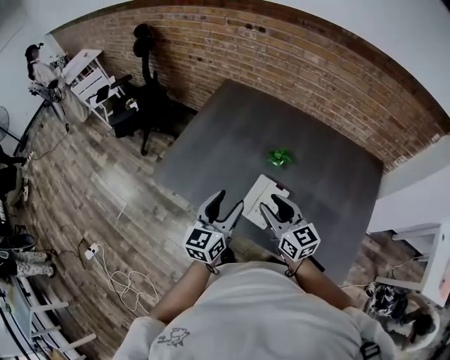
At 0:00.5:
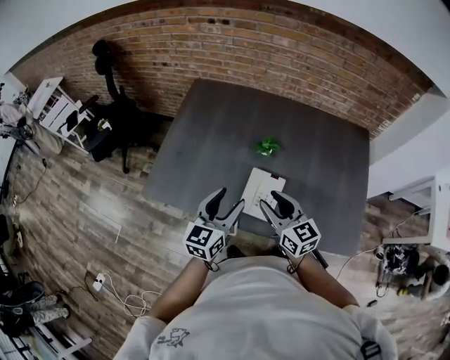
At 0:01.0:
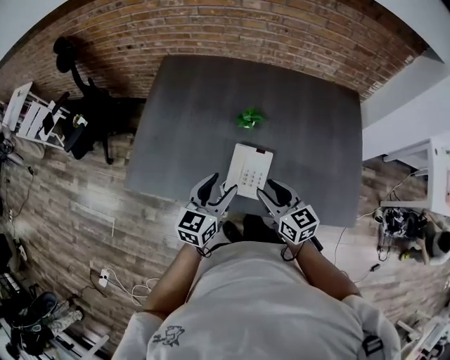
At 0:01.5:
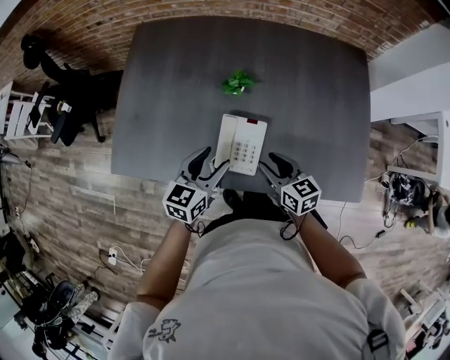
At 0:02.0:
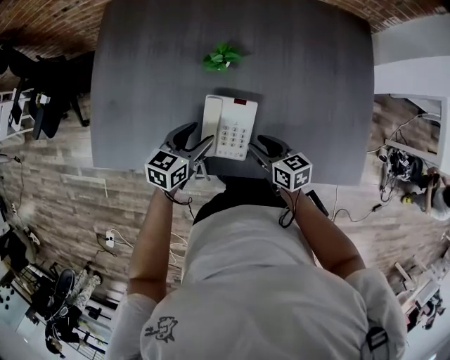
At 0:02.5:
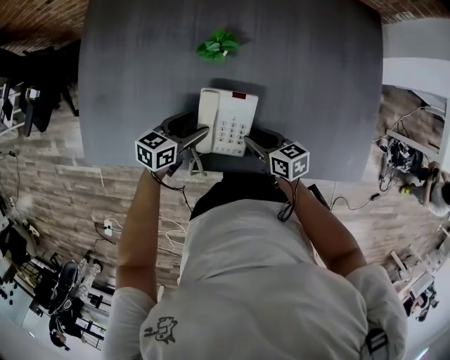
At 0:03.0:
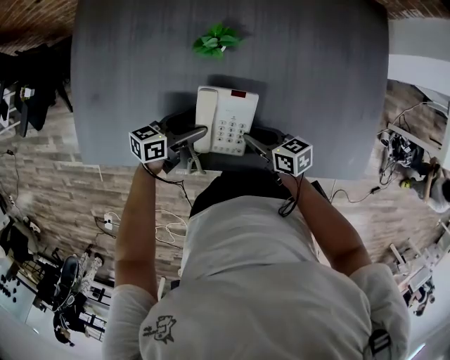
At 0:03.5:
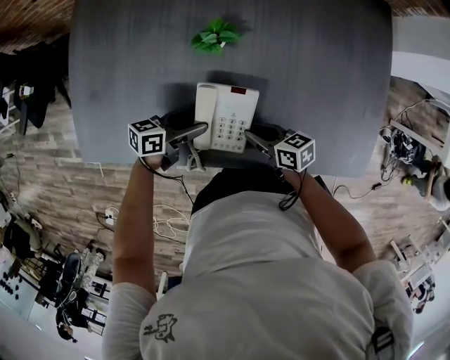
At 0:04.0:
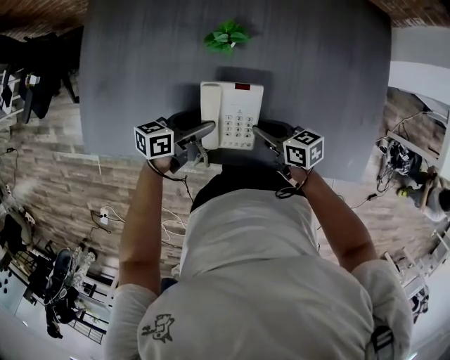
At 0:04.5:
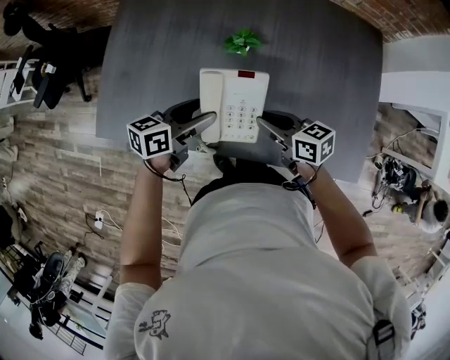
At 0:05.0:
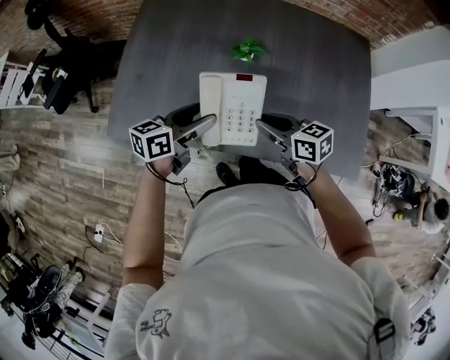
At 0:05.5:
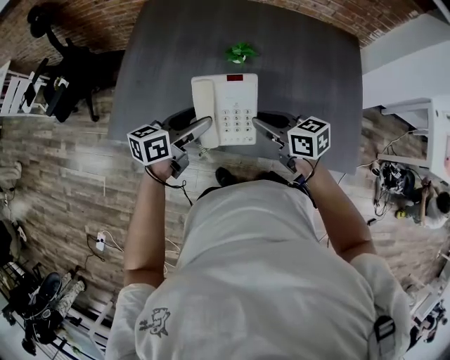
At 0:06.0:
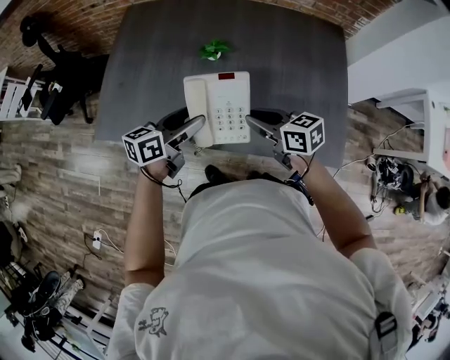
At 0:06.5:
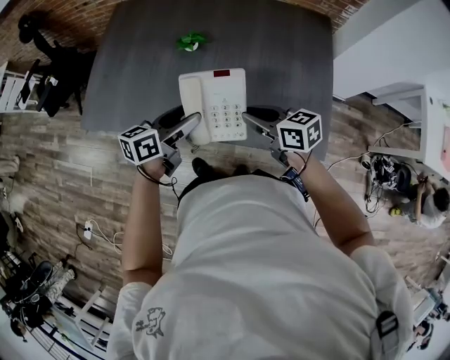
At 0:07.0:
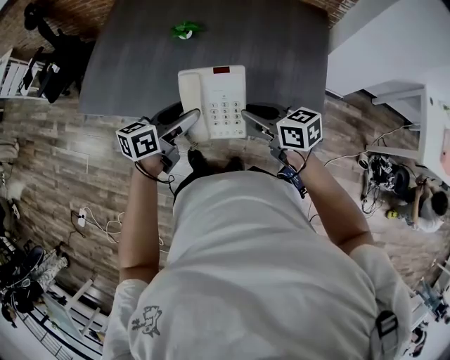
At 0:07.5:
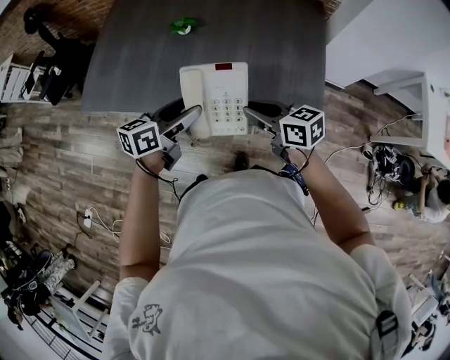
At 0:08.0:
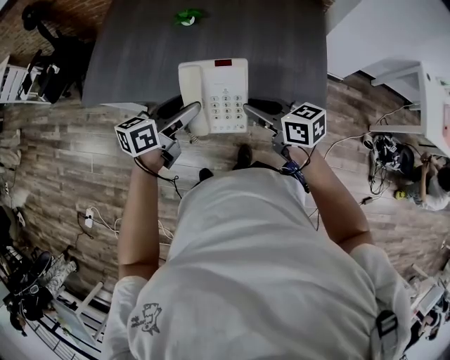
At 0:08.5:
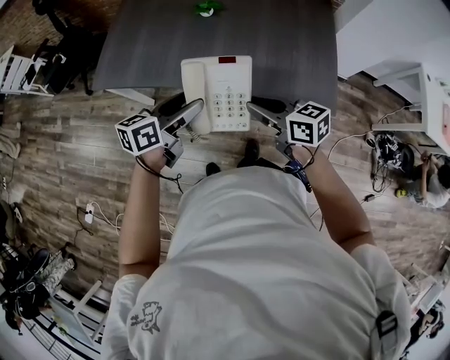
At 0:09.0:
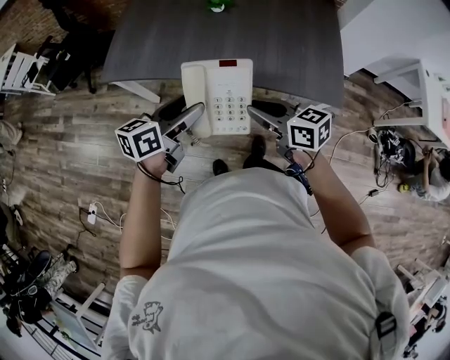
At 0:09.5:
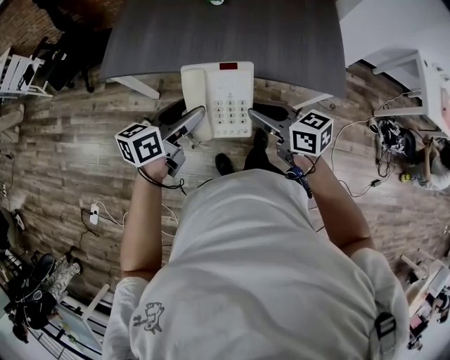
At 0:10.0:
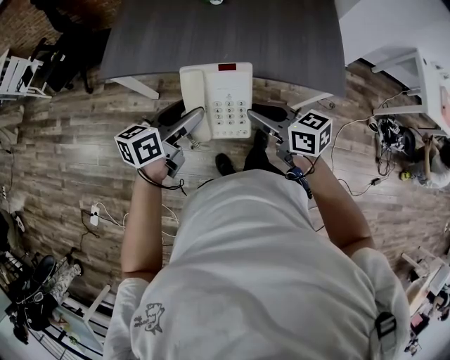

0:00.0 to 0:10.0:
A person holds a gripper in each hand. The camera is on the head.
0:00.0 to 0:02.0: The grippers both shift downward by approximately 25 cm. The left gripper rotates roughly 50 degrees. The right gripper turns by about 40 degrees.
0:02.0 to 0:04.0: The left gripper rotates about 30 degrees. The right gripper closes its fingers.
0:04.0 to 0:06.0: The two grippers go roughly 20 cm upward. The left gripper turns by roughly 20 degrees.
0:06.0 to 0:08.0: The two grippers go some 20 cm backward and to the right.
0:08.0 to 0:10.0: The two grippers go approximately 20 cm to the left and backward.

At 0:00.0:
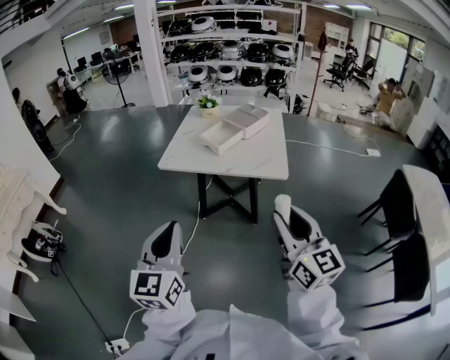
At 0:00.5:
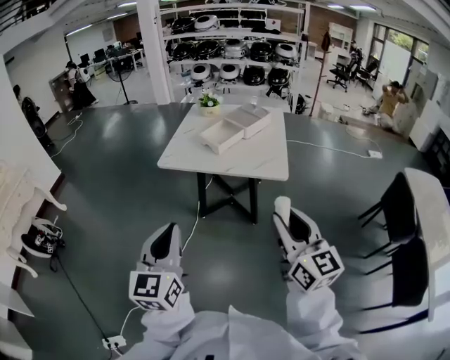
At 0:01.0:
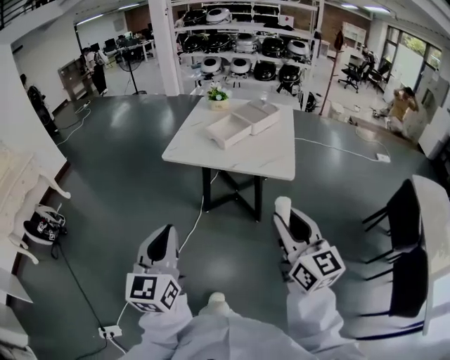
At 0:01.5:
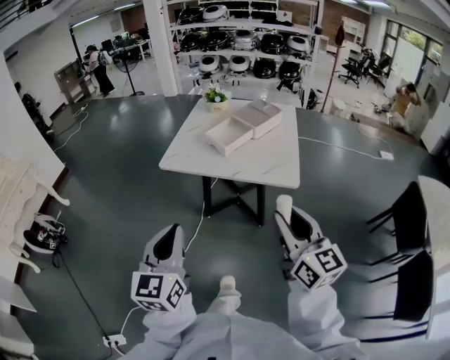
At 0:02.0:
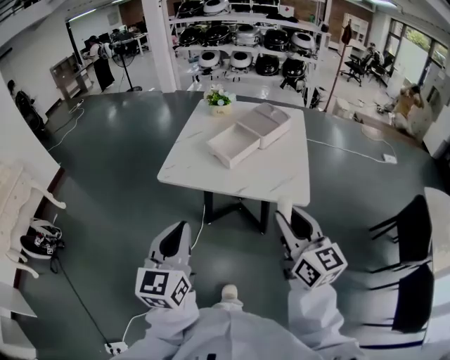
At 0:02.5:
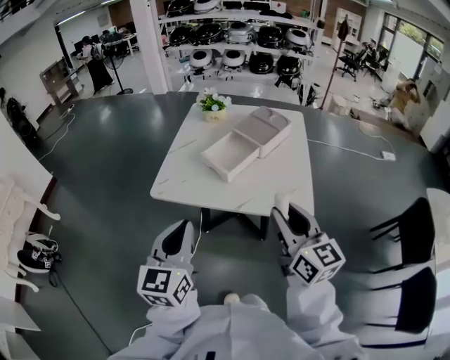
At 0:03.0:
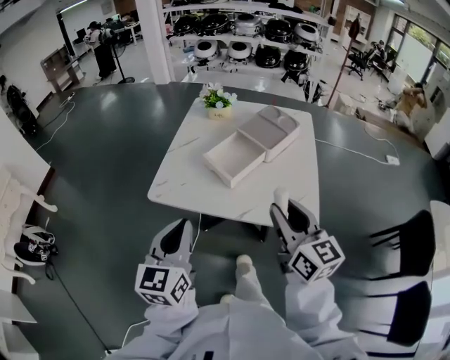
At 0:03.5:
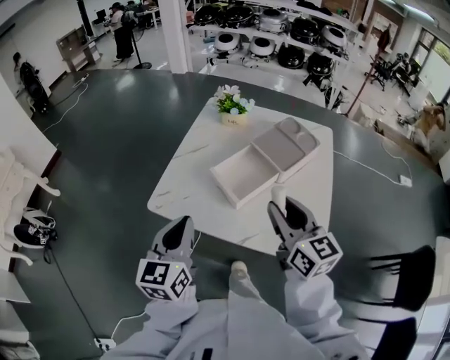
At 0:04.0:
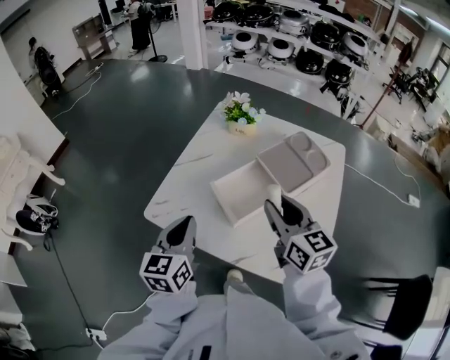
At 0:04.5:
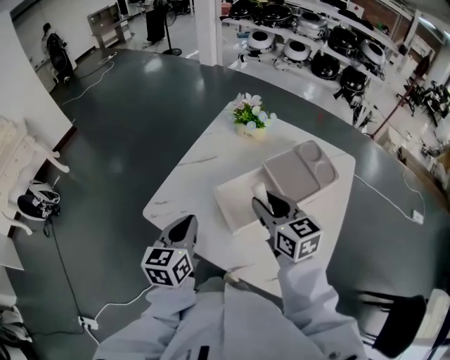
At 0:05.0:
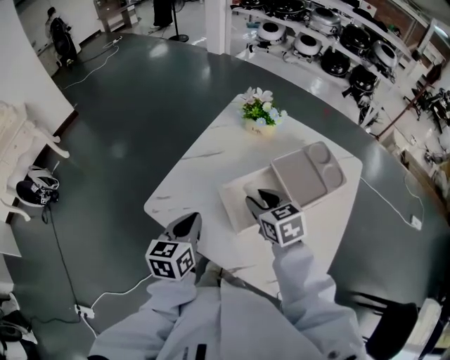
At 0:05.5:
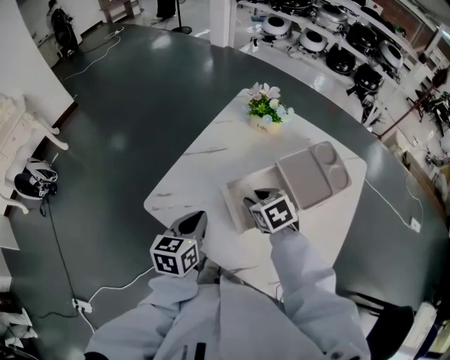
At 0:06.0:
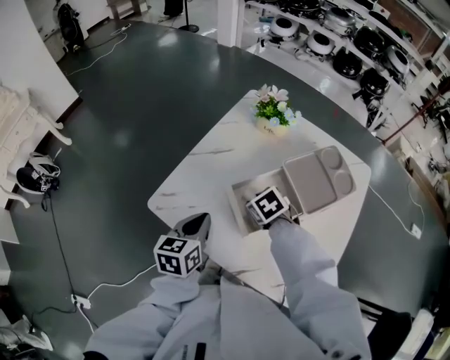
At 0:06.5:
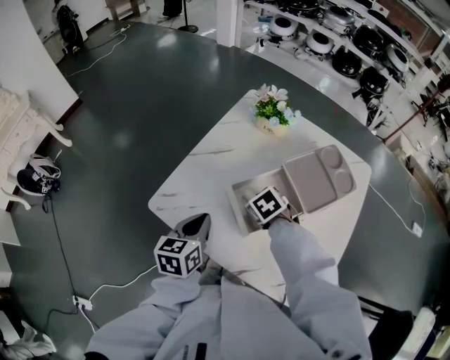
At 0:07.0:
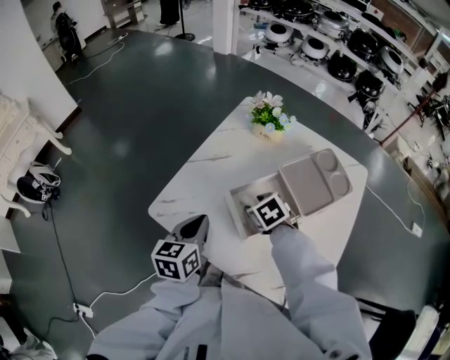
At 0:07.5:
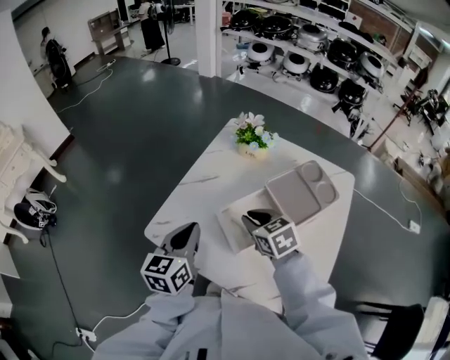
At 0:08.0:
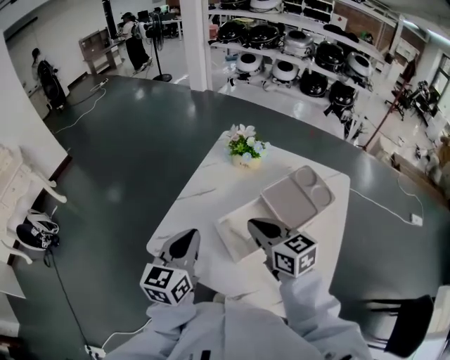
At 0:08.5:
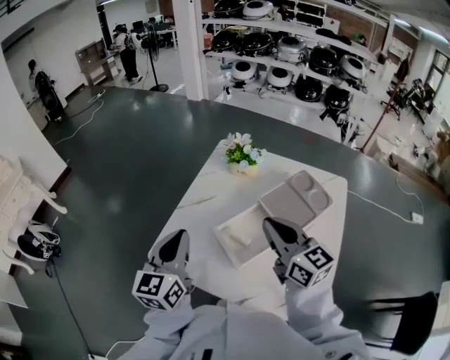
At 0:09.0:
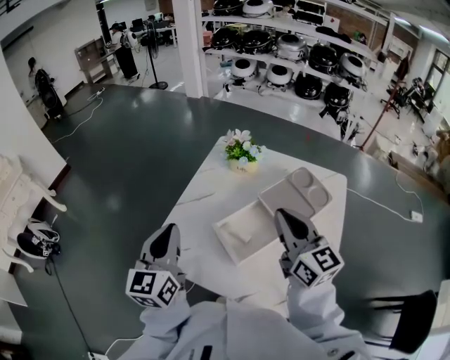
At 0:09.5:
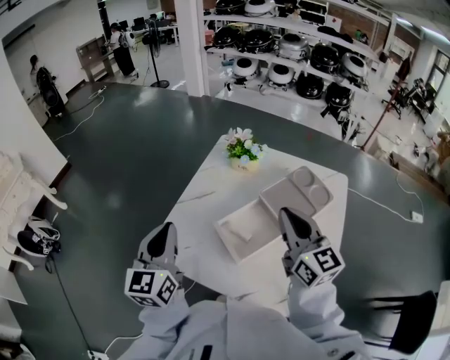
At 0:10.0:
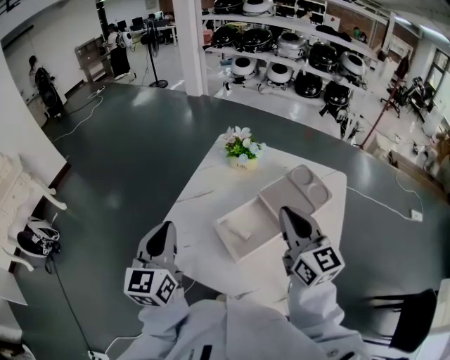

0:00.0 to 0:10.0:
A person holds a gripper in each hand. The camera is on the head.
0:00.0 to 0:02.0: The grippers both shift forward by approximately 20 cm.
0:02.0 to 0:04.0: The grippers both shift forward by some 40 cm.
0:04.0 to 0:06.0: The right gripper travels downward and forward by approximately 25 cm, and angles its fingers downward, by approximately 60 degrees. The left gripper travels downward and forward by approximately 15 cm.
0:06.0 to 0:08.0: The two grippers go approximately 15 cm upward. The left gripper rotates approximately 20 degrees, while the right gripper angles its fingers upward, by approximately 50 degrees, and closes.
0:08.0 to 0:10.0: The right gripper shifts some 10 cm upward and to the right, and swivels about 30 degrees, while the left gripper travels upward and to the left by about 10 cm.

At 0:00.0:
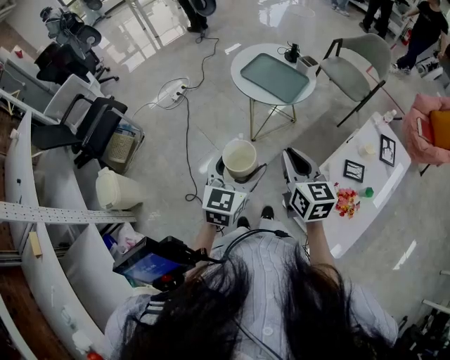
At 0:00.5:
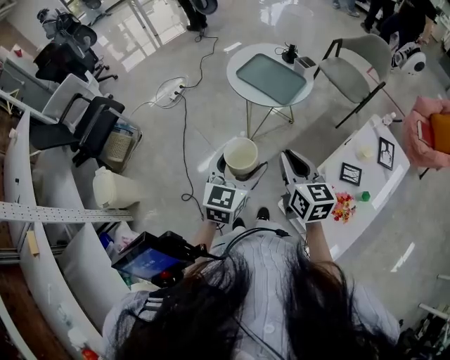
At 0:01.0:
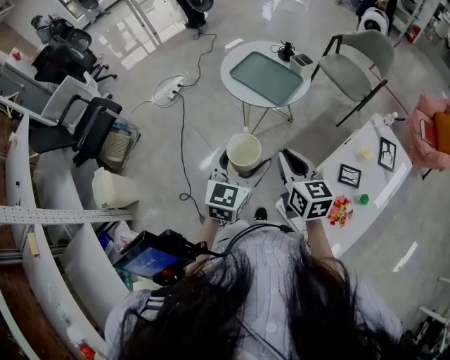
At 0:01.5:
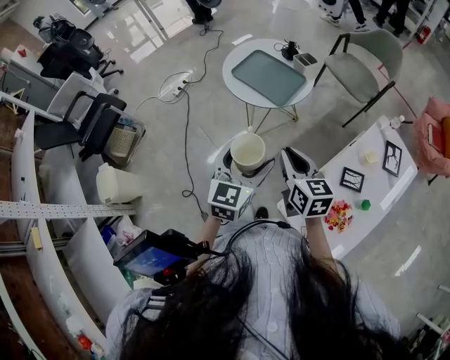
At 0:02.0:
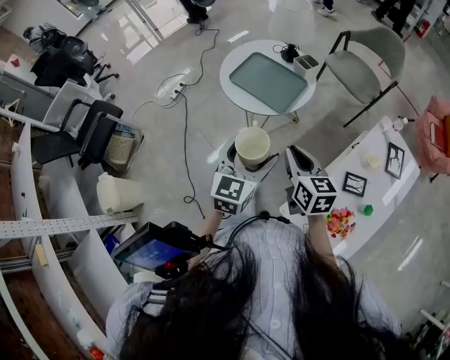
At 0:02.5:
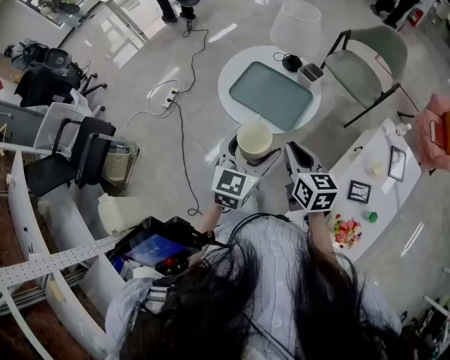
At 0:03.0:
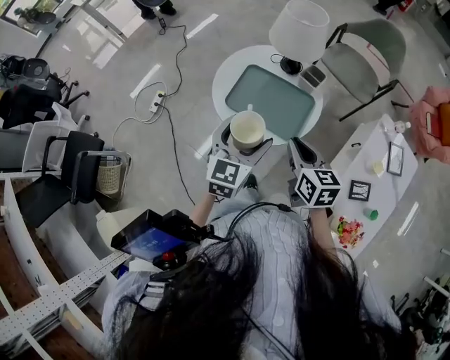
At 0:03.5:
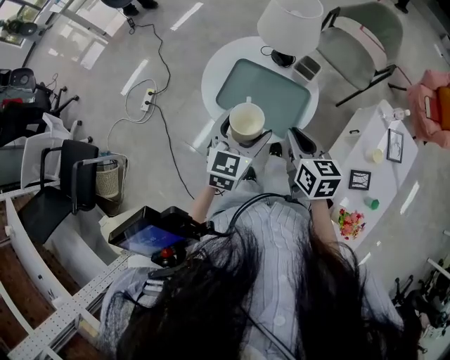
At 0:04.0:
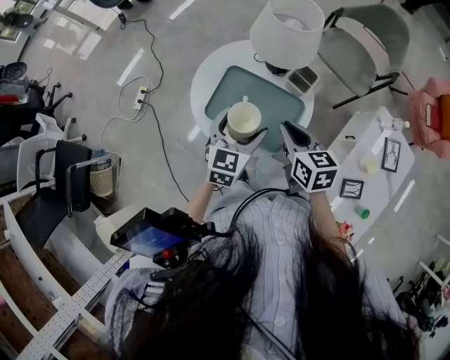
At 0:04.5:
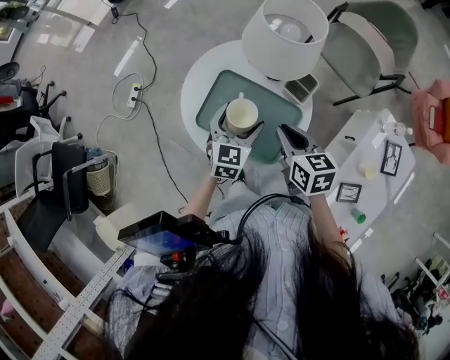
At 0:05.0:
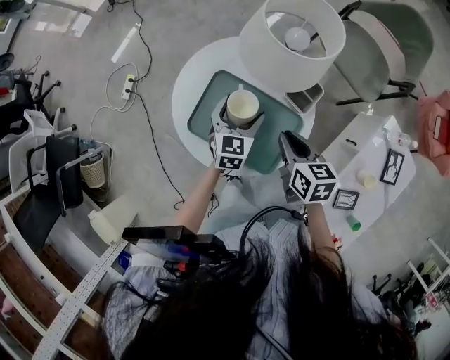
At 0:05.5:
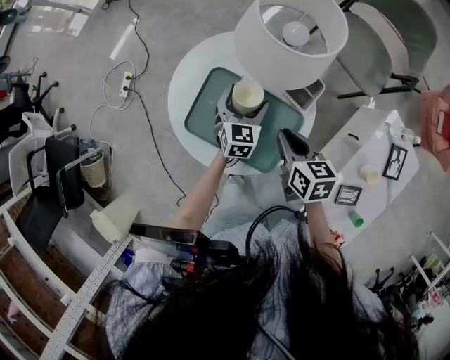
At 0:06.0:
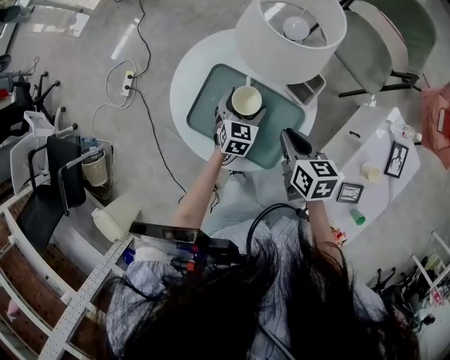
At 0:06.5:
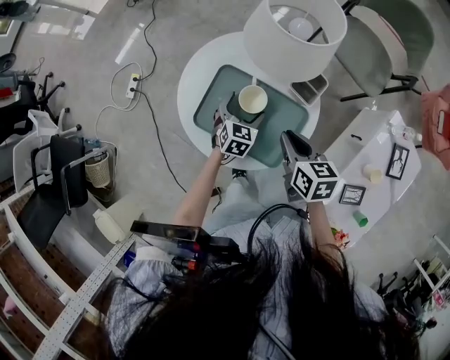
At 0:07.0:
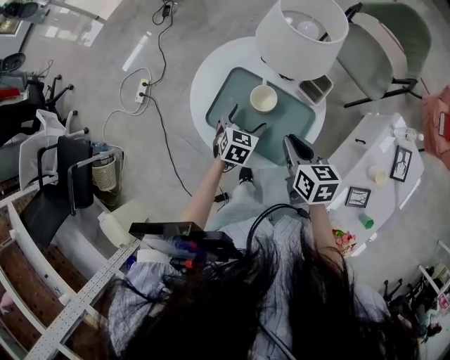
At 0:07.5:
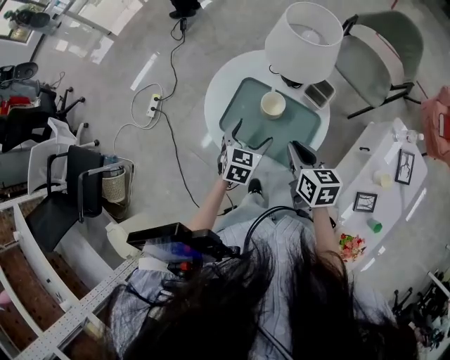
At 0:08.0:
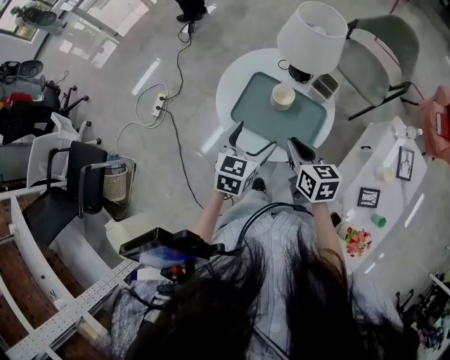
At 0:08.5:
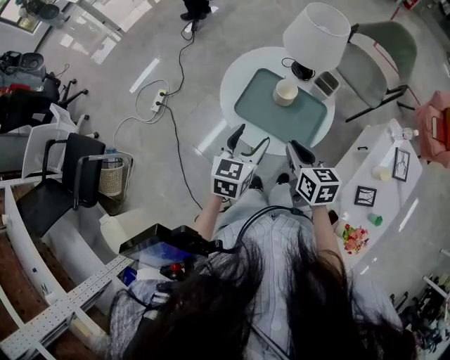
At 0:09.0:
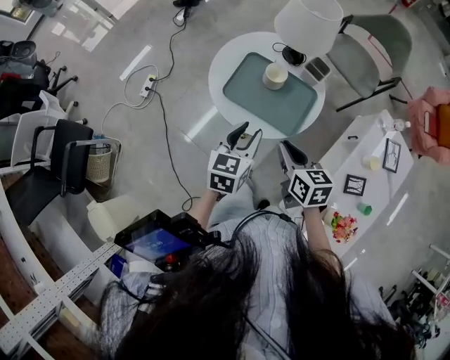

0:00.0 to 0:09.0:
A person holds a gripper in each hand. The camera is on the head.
0:00.0 to 0:02.0: The left gripper shifts about 20 cm forward and to the right. The right gripper heads forward, to the right and downward, covering some 15 cm.
0:02.0 to 0:04.5: The right gripper travels forward by roughly 35 cm, while the left gripper moves forward and downward, roughly 40 cm.
0:04.5 to 0:07.0: The left gripper travels downward by approximately 10 cm.
0:07.0 to 0:09.0: The left gripper shifts about 25 cm upward and backward, swivels approximately 20 degrees, and closes, while the right gripper moves backward and to the left, roughly 15 cm.
